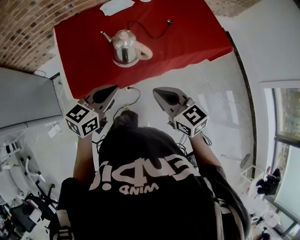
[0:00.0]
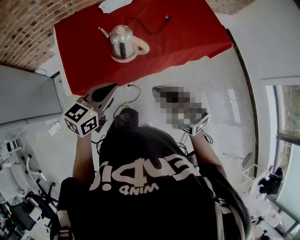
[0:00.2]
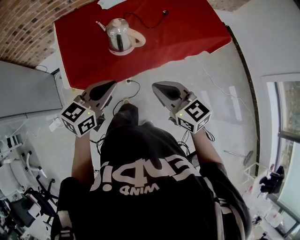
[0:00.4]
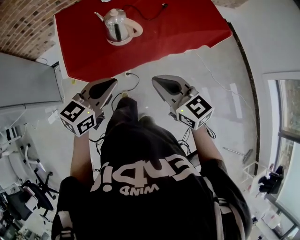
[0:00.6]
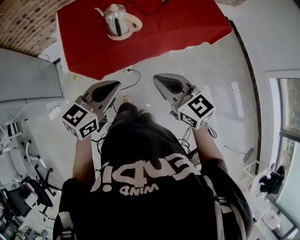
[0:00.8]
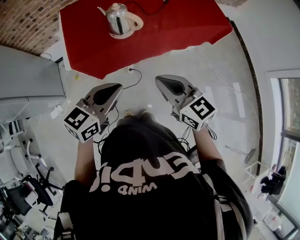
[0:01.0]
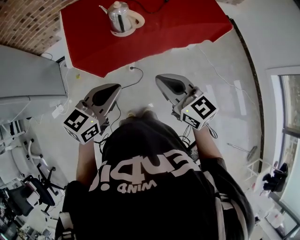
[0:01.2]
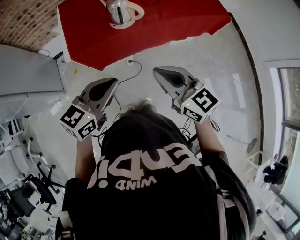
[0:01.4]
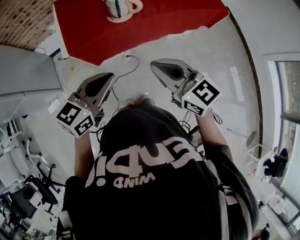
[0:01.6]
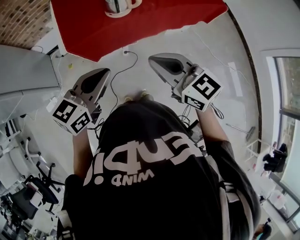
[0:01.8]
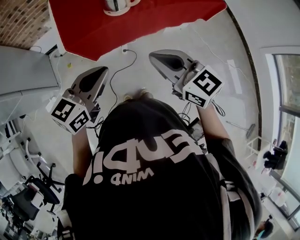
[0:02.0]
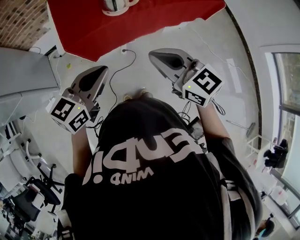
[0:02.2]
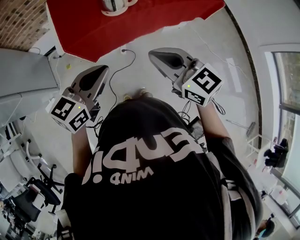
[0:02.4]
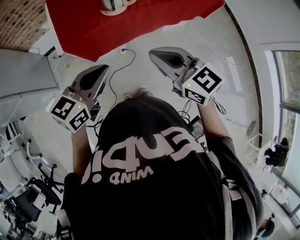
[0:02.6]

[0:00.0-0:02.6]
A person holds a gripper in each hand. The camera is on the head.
0:00.0 to 0:01.2: The two grippers go some 15 cm backward.
0:01.2 to 0:02.6: The grippers make only small movements.

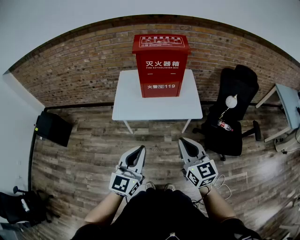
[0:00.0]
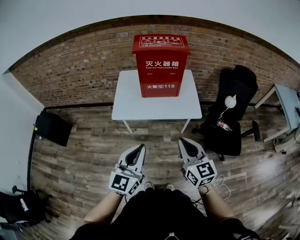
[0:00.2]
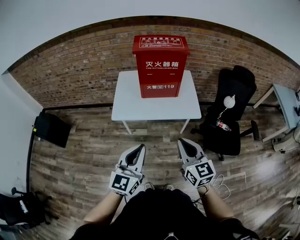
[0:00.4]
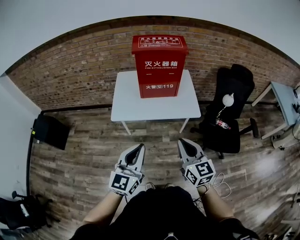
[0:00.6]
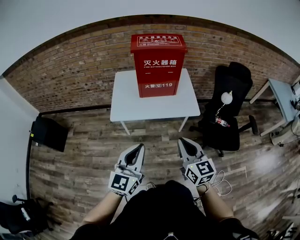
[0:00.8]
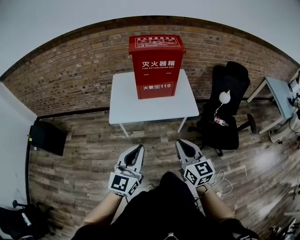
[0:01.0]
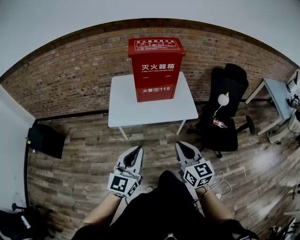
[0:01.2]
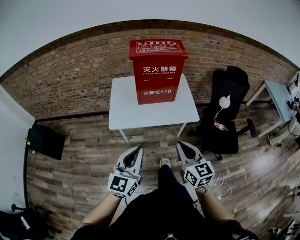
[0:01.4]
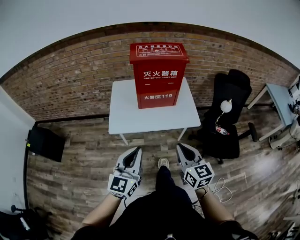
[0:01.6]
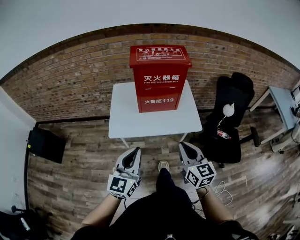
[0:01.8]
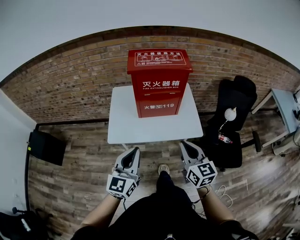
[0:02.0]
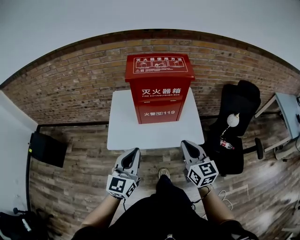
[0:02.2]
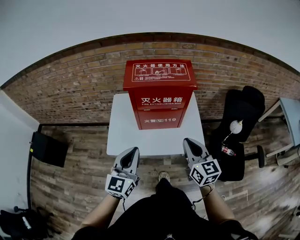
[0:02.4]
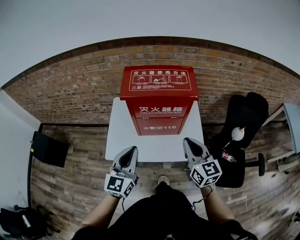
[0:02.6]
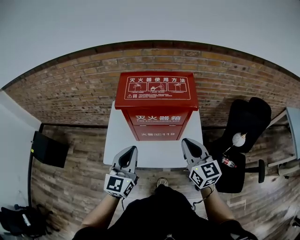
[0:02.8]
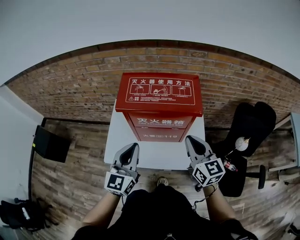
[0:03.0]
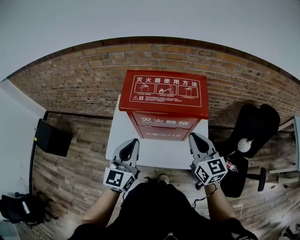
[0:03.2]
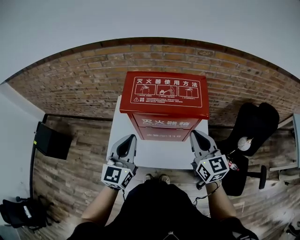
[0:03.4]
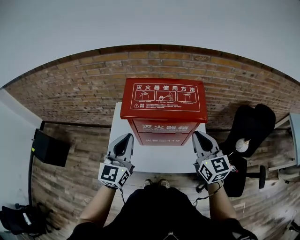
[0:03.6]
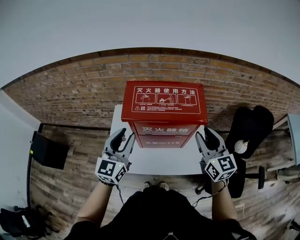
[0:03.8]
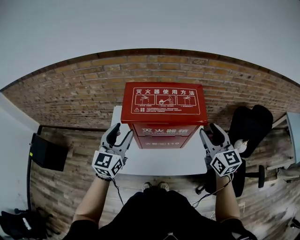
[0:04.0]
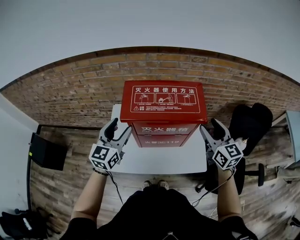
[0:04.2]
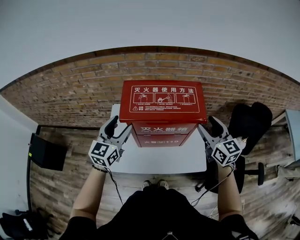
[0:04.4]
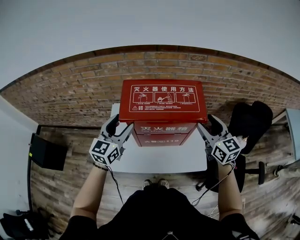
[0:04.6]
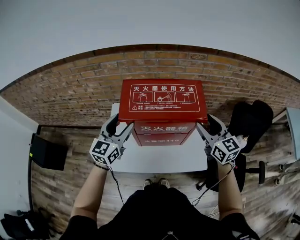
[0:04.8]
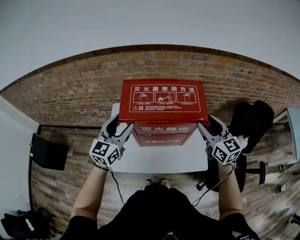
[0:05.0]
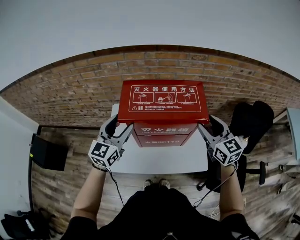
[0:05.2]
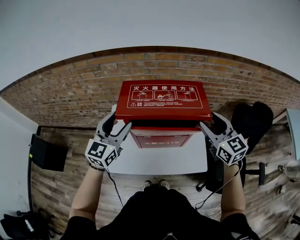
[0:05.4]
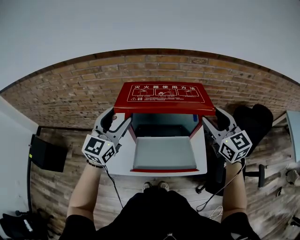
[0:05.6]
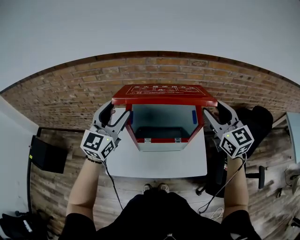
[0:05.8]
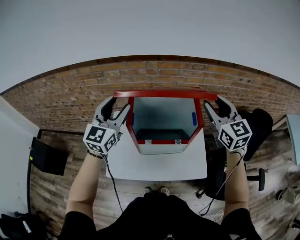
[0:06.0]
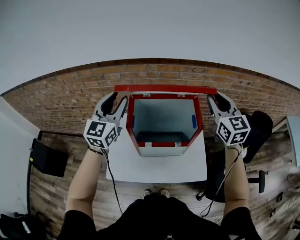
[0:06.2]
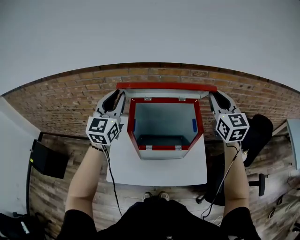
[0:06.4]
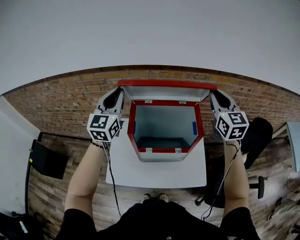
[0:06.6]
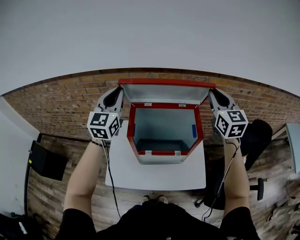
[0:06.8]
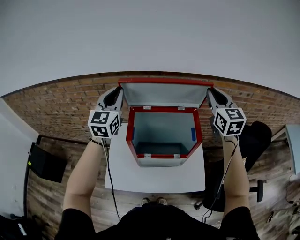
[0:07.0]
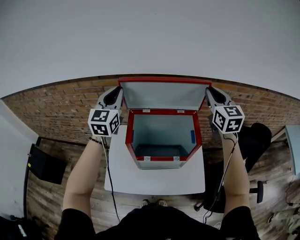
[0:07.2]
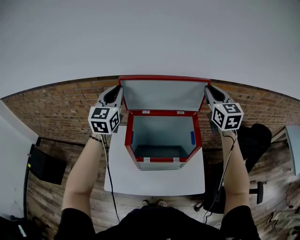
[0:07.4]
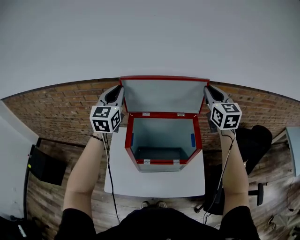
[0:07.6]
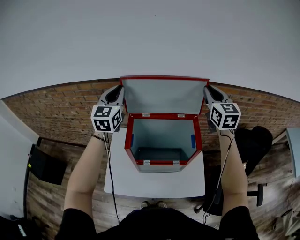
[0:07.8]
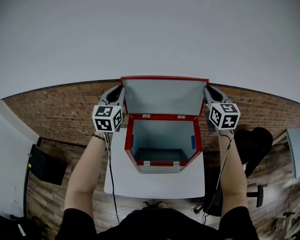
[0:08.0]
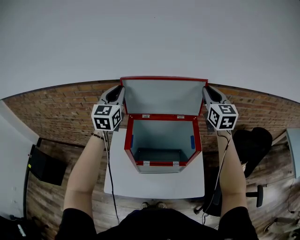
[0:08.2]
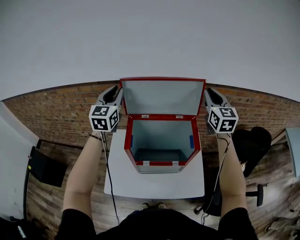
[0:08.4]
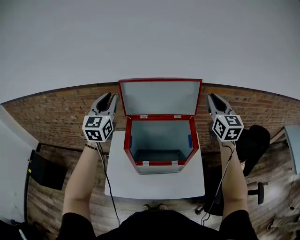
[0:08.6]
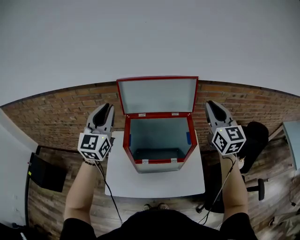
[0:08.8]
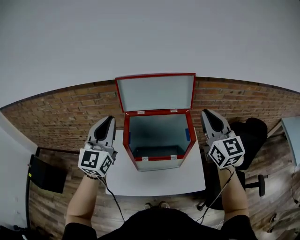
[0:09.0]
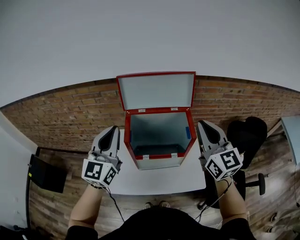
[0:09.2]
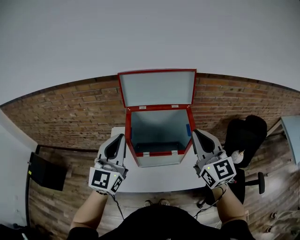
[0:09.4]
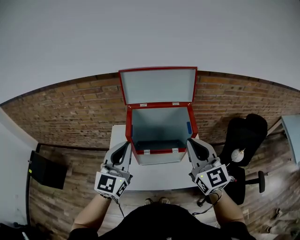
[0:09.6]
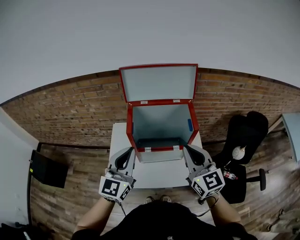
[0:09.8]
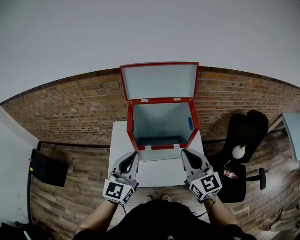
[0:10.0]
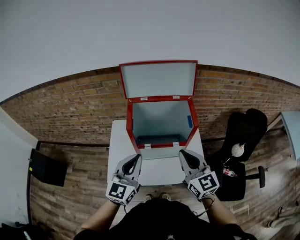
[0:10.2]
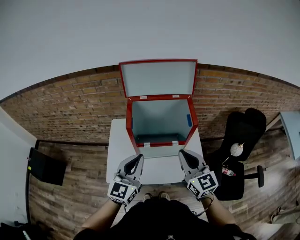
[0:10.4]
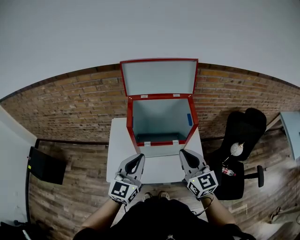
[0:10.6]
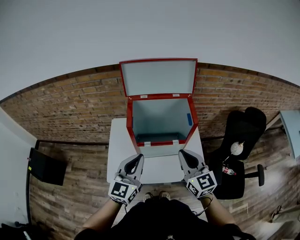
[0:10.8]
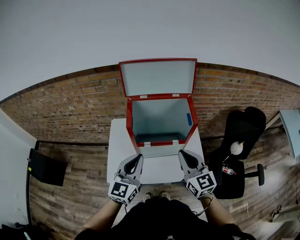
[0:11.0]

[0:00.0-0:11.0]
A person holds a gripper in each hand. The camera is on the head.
0:00.0 to 0:01.6: The left gripper goes roughly 10 cm forward and to the left. The right gripper moves about 5 cm.
0:01.6 to 0:03.2: Both grippers travel together forward, roughly 40 cm.
0:03.2 to 0:04.8: The right gripper moves forward, about 5 cm, and opens up. The left gripper heads forward and to the left, covering some 15 cm, and opens up.
0:04.8 to 0:06.2: The two grippers go some 15 cm upward and forward. The right gripper closes; the left gripper closes its fingers.
0:06.2 to 0:07.8: Both grippers travel together forward, approximately 15 cm. The left gripper closes.
0:07.8 to 0:09.4: Both grippers move backward, about 25 cm.
0:09.4 to 0:11.0: The grippers both shift downward and backward by about 15 cm.

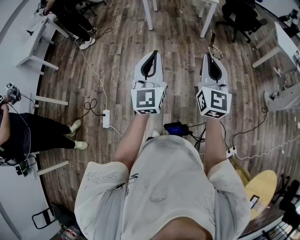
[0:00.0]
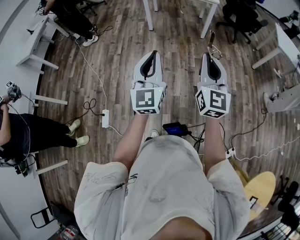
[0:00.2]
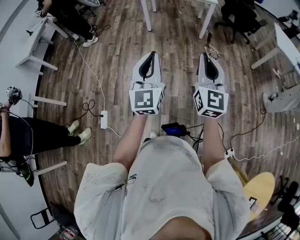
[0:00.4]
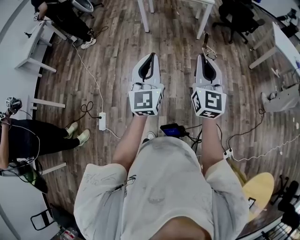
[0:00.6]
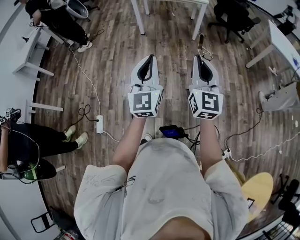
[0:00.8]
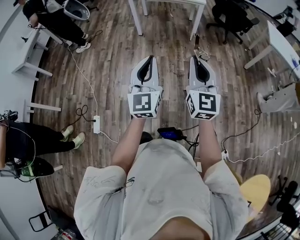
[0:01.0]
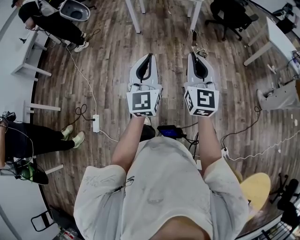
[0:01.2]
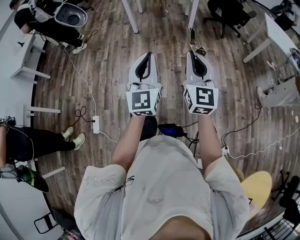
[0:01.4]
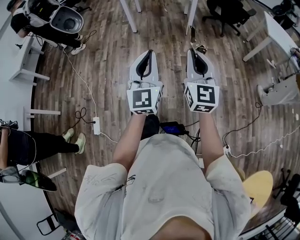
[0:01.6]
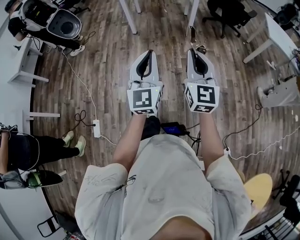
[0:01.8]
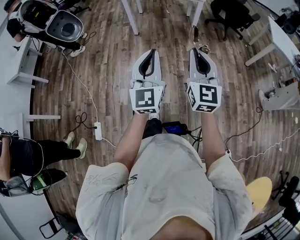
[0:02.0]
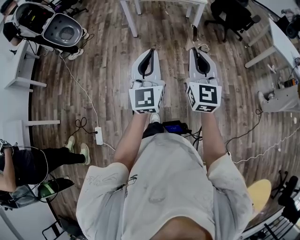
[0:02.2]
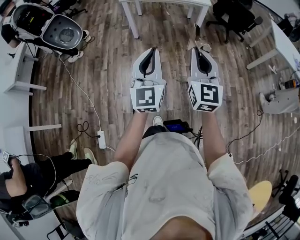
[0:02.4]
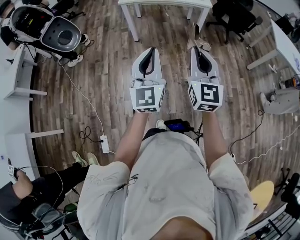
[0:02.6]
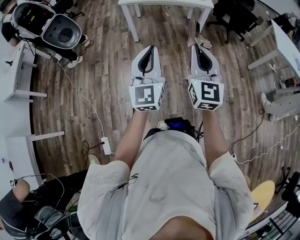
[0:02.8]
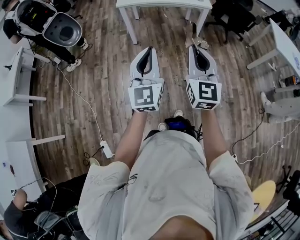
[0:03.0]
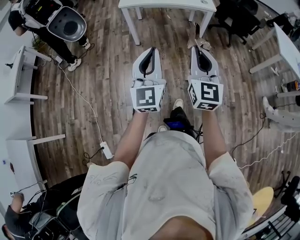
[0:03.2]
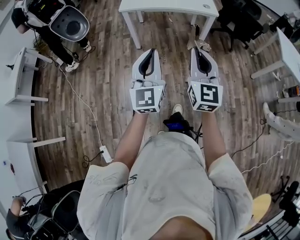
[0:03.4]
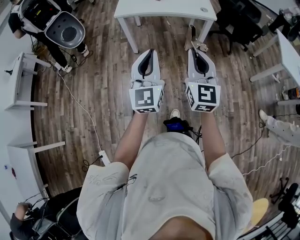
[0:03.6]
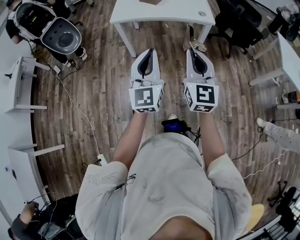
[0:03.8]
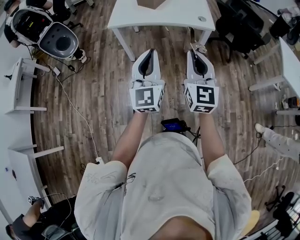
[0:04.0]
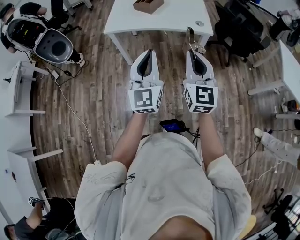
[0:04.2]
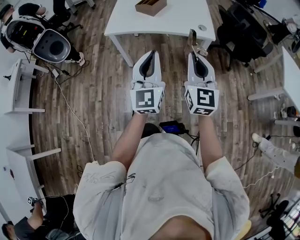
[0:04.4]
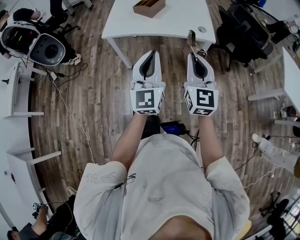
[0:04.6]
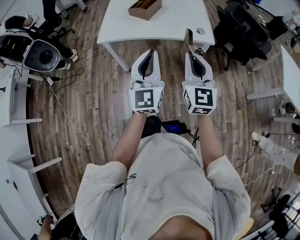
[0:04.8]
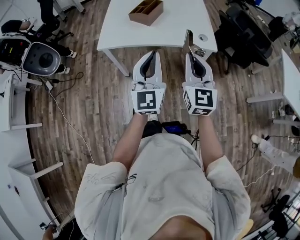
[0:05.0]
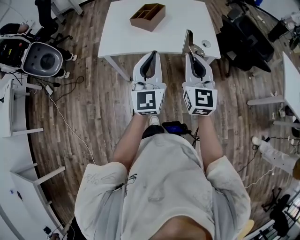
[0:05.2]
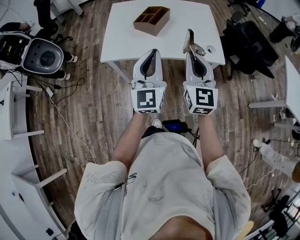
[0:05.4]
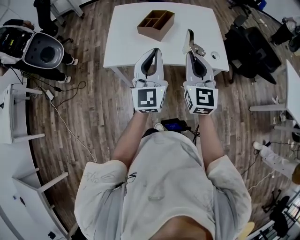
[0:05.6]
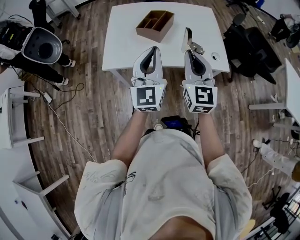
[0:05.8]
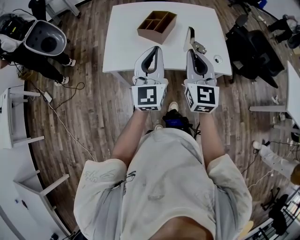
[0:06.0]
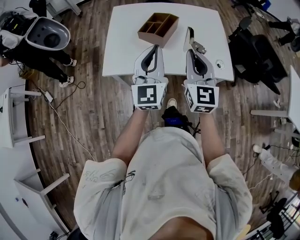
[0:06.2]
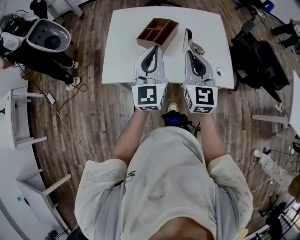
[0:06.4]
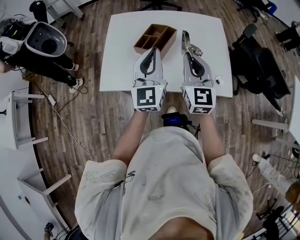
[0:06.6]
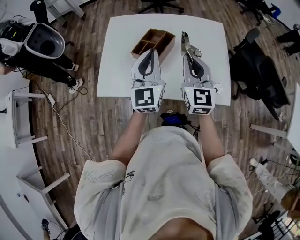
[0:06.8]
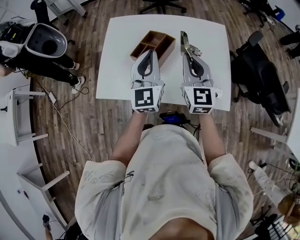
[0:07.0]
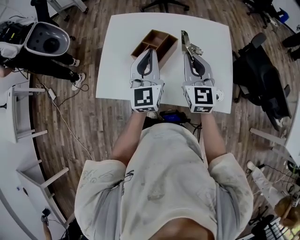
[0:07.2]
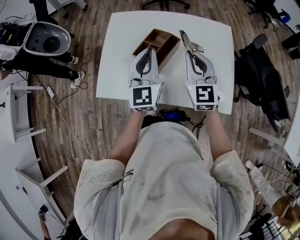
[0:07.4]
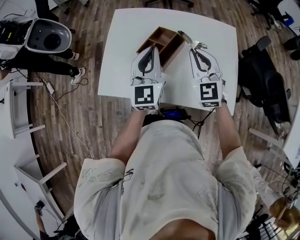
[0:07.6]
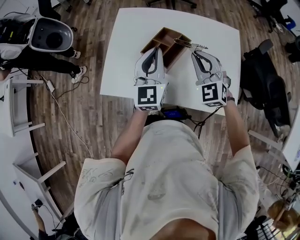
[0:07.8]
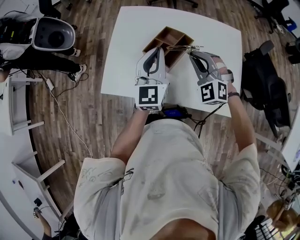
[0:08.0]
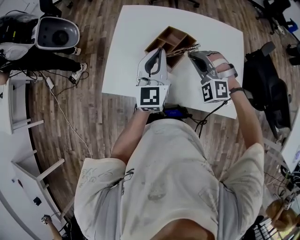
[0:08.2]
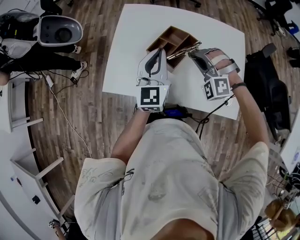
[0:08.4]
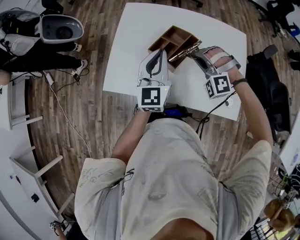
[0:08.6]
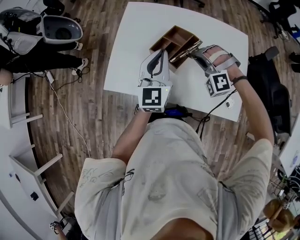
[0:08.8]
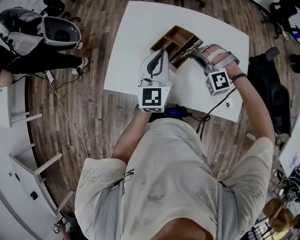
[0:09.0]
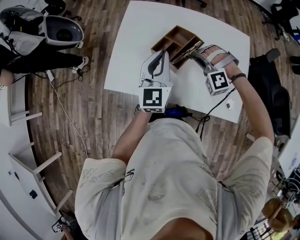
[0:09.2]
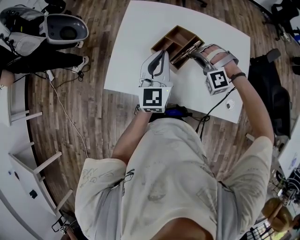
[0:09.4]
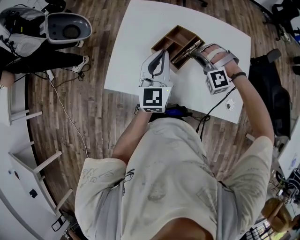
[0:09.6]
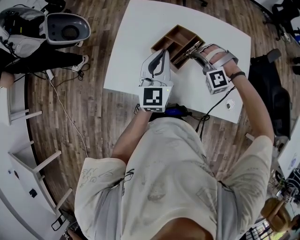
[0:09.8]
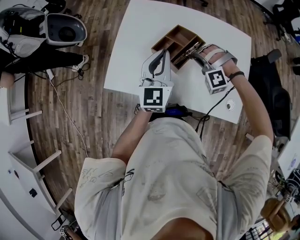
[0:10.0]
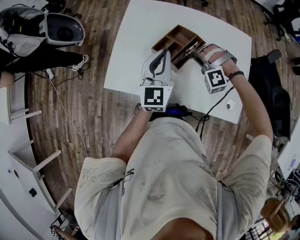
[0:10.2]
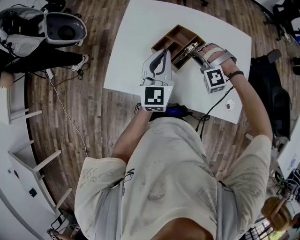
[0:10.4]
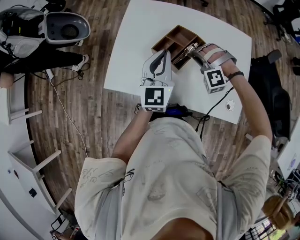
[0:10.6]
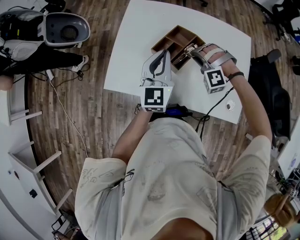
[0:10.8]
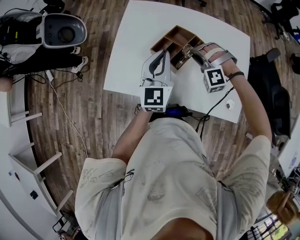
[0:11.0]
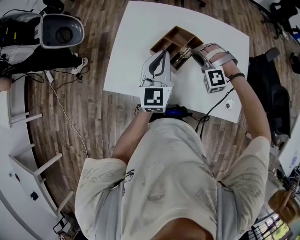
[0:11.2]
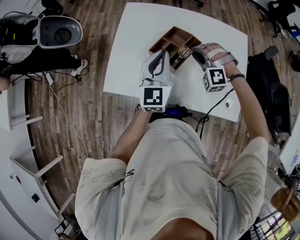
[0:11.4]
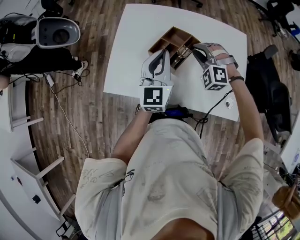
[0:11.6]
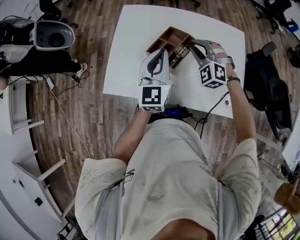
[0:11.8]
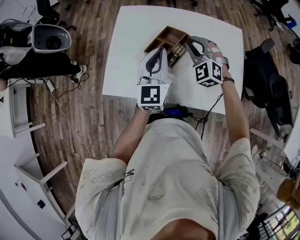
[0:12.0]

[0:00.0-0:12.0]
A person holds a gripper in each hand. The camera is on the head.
0:00.0 to 0:01.6: The grippers stay close to where they were, moving slightly.
0:01.6 to 0:03.0: The two grippers go about 10 cm forward.
0:03.0 to 0:04.4: Both grippers move forward, about 10 cm.
0:04.4 to 0:06.0: Both grippers travel together forward, some 10 cm.
0:06.0 to 0:07.6: Both grippers travel together forward, roughly 5 cm. The right gripper rotates approximately 30 degrees.
0:07.6 to 0:09.0: The right gripper is displaced downward by roughly 10 cm, and twists approximately 70 degrees counterclockwise, seen from behind.
0:09.0 to 0:10.4: The grippers stay close to where they were, moving slightly.
0:10.4 to 0:12.0: The right gripper shifts roughly 10 cm upward, and twists roughly 50 degrees clockwise, seen from behind.
